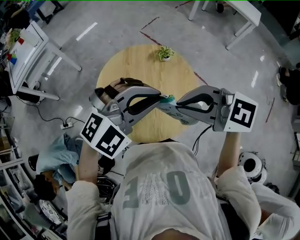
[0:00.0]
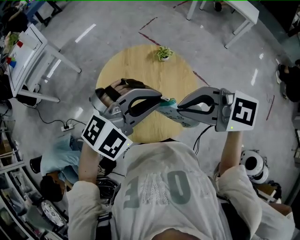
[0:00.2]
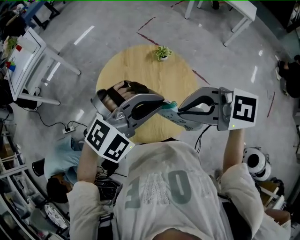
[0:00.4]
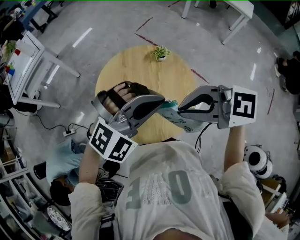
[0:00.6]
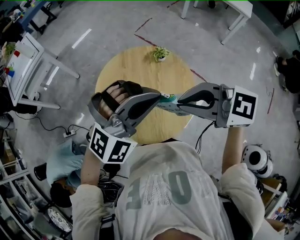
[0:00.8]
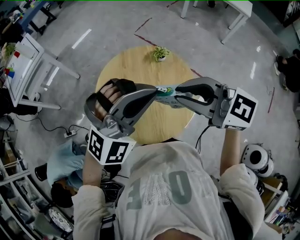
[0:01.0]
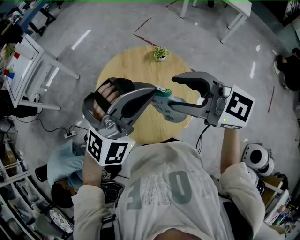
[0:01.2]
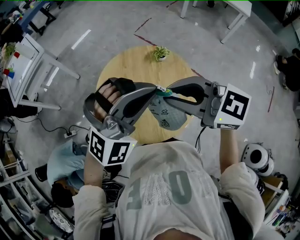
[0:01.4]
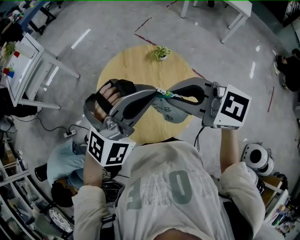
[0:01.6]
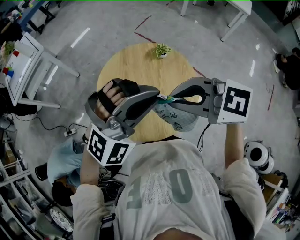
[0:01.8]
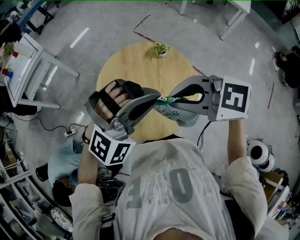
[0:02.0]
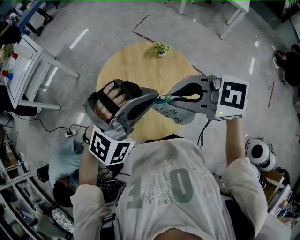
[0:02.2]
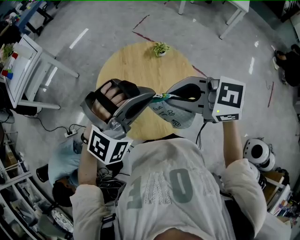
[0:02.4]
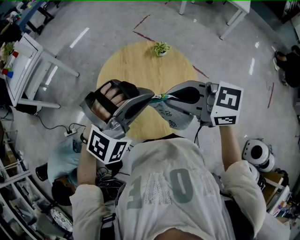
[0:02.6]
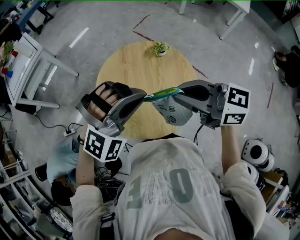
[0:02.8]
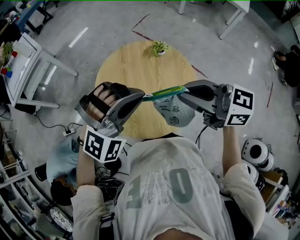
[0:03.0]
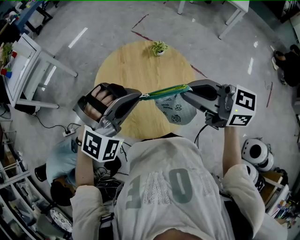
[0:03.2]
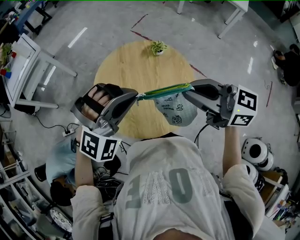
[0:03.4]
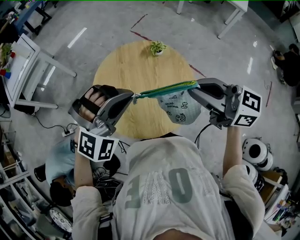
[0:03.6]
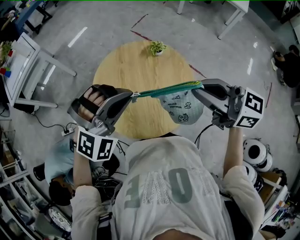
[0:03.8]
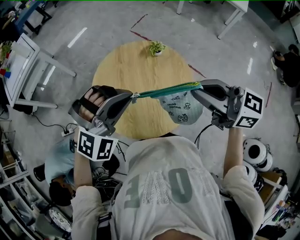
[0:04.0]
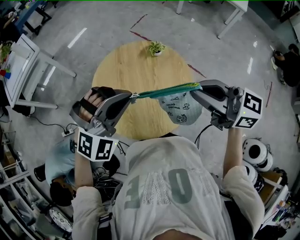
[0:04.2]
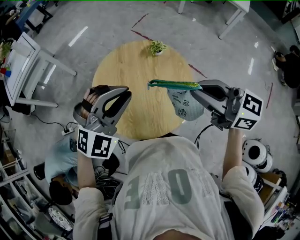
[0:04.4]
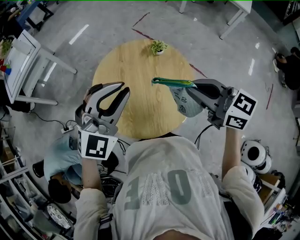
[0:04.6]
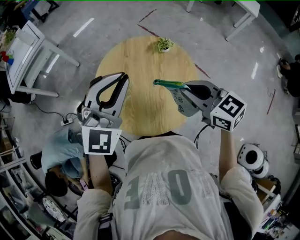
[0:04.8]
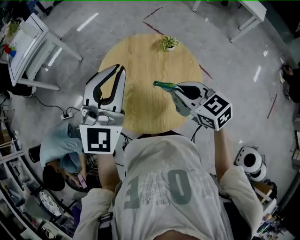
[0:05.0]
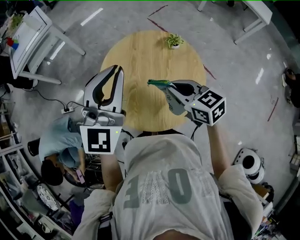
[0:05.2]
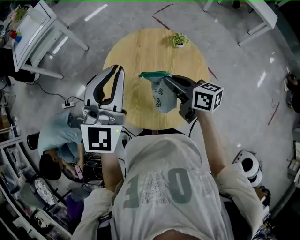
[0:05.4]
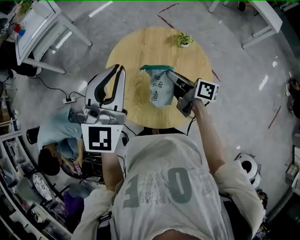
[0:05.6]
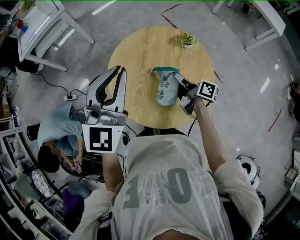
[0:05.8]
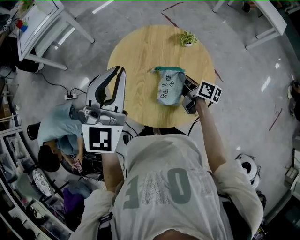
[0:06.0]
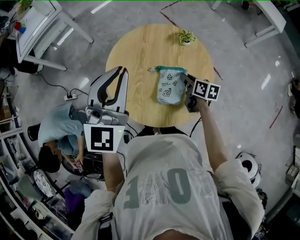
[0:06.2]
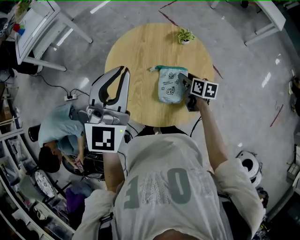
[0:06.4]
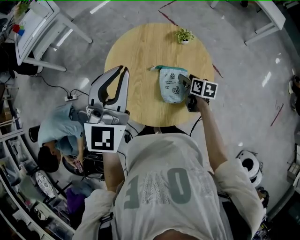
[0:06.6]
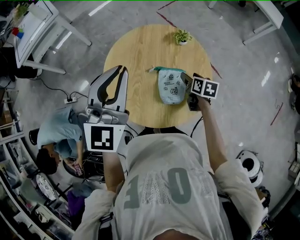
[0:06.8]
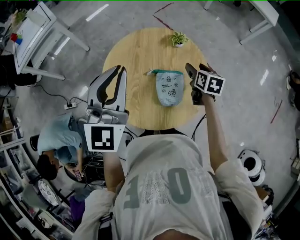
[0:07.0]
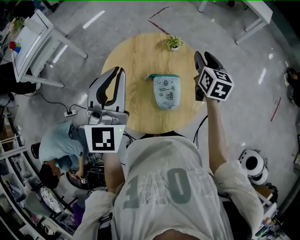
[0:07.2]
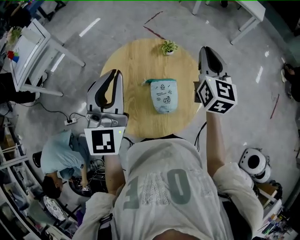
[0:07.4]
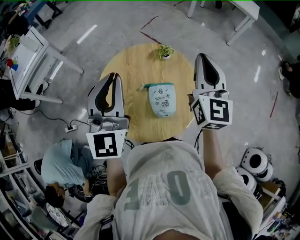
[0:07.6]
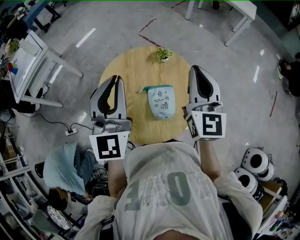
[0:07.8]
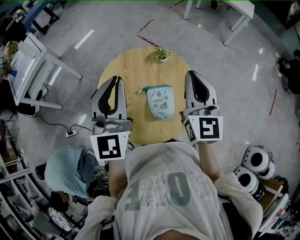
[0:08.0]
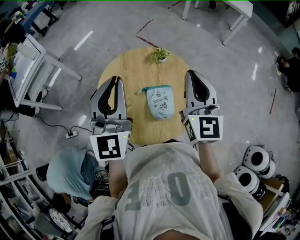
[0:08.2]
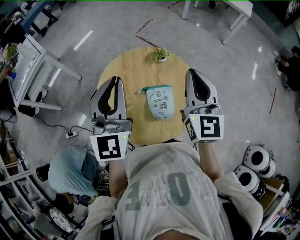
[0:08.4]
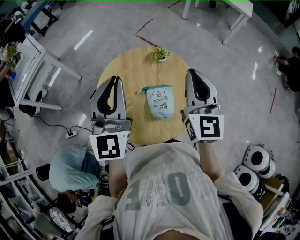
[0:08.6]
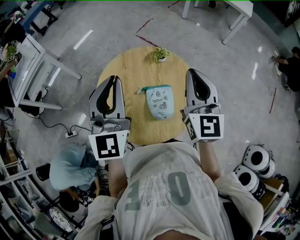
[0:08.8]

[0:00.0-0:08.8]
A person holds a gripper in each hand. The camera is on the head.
0:00.0 to 0:01.4: The right gripper opens and closes again. The left gripper swivels about 20 degrees.
0:01.4 to 0:03.0: The left gripper is displaced downward by roughly 5 cm.
0:03.0 to 0:04.4: The right gripper goes approximately 5 cm to the right; the left gripper swivels approximately 20 degrees.
0:04.4 to 0:05.8: The left gripper travels to the left by approximately 10 cm, and swivels some 60 degrees; the right gripper heads downward and forward, covering approximately 30 cm, and twists roughly 60 degrees clockwise, seen from behind.
0:05.8 to 0:07.4: The right gripper moves upward, some 25 cm, turns by some 80 degrees, and opens, then closes once more. The left gripper moves some 5 cm.
0:07.4 to 0:08.8: The right gripper goes approximately 10 cm backward.

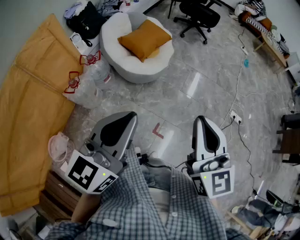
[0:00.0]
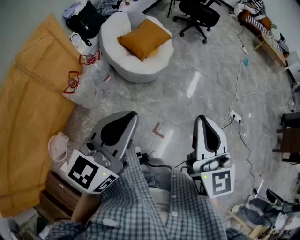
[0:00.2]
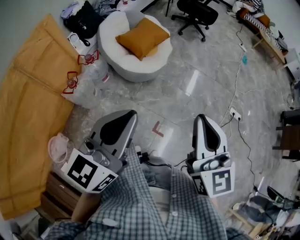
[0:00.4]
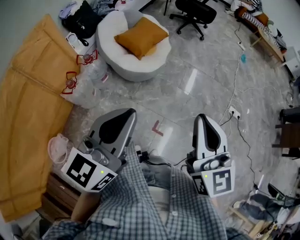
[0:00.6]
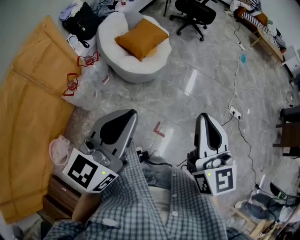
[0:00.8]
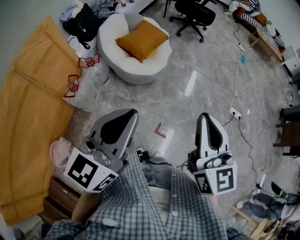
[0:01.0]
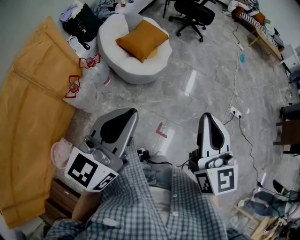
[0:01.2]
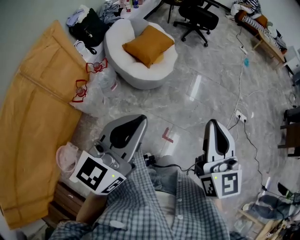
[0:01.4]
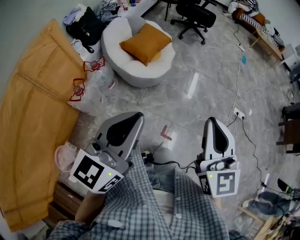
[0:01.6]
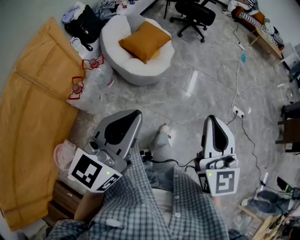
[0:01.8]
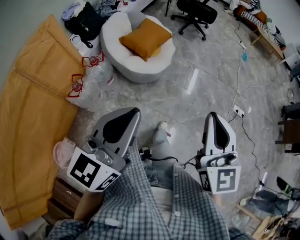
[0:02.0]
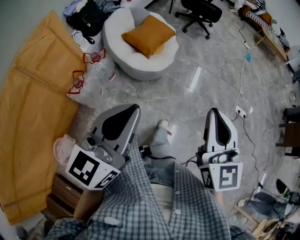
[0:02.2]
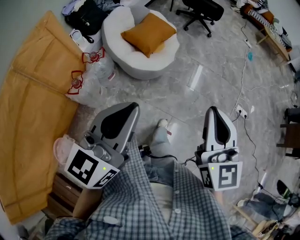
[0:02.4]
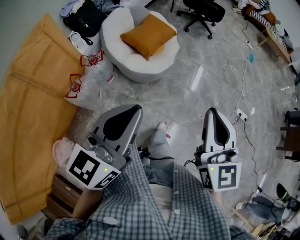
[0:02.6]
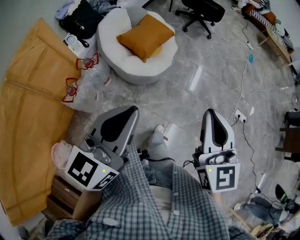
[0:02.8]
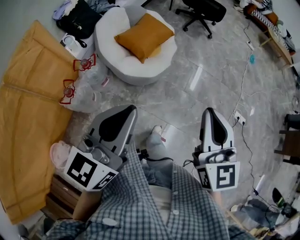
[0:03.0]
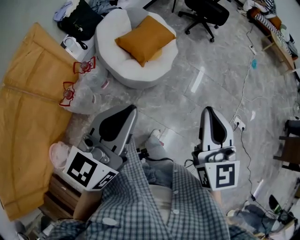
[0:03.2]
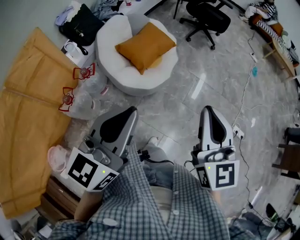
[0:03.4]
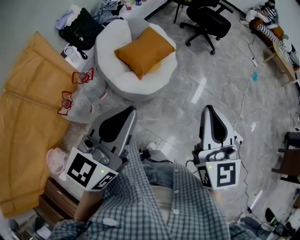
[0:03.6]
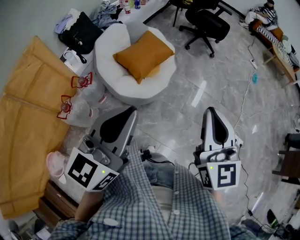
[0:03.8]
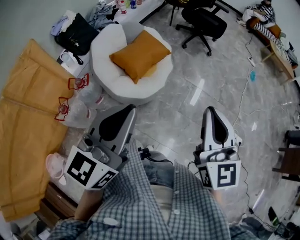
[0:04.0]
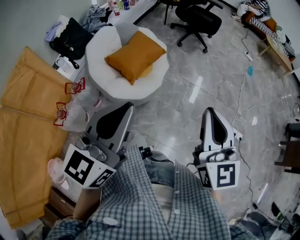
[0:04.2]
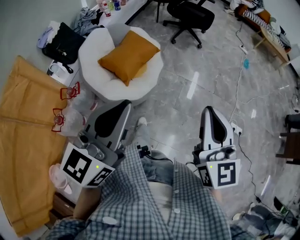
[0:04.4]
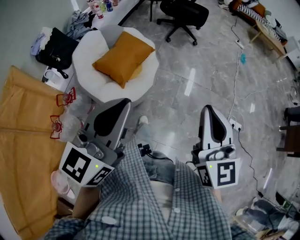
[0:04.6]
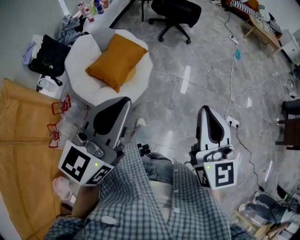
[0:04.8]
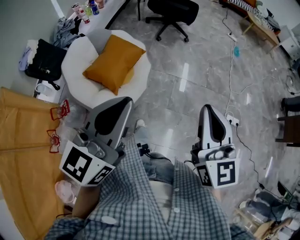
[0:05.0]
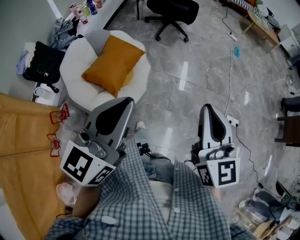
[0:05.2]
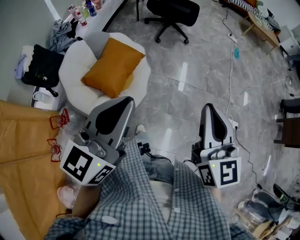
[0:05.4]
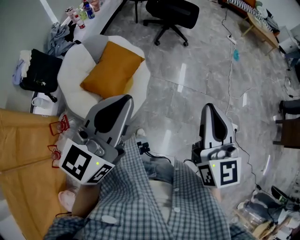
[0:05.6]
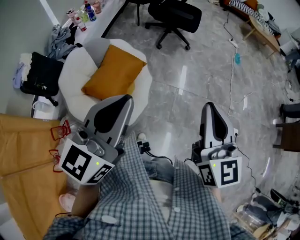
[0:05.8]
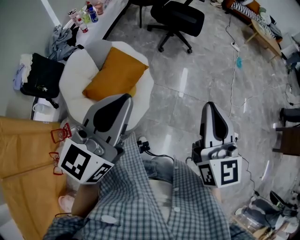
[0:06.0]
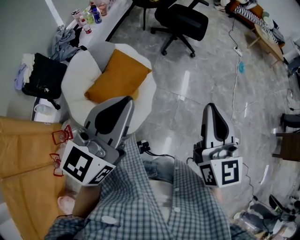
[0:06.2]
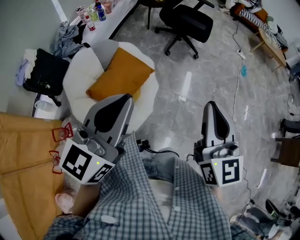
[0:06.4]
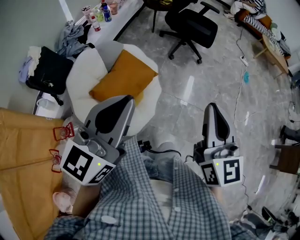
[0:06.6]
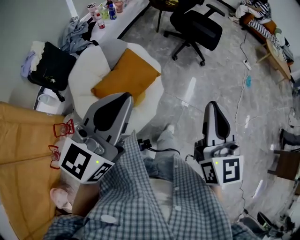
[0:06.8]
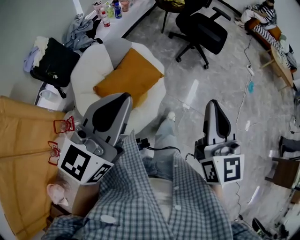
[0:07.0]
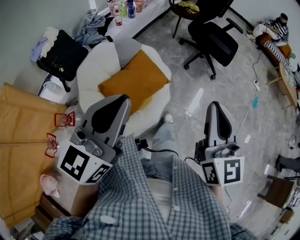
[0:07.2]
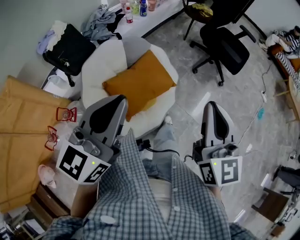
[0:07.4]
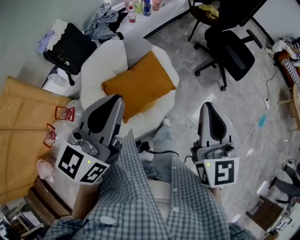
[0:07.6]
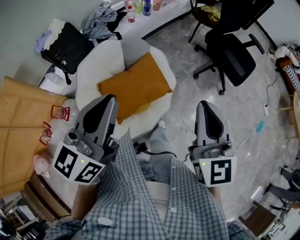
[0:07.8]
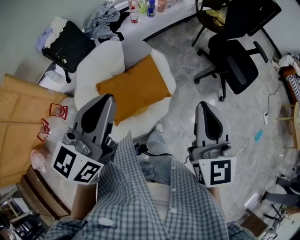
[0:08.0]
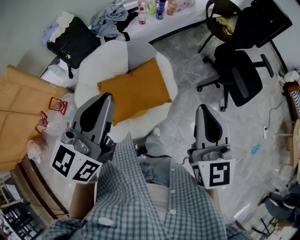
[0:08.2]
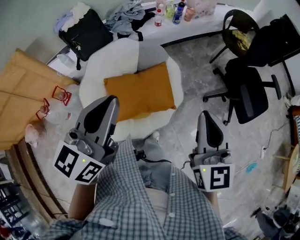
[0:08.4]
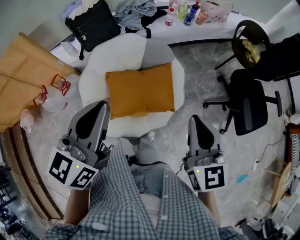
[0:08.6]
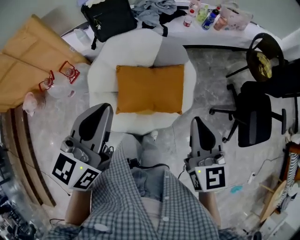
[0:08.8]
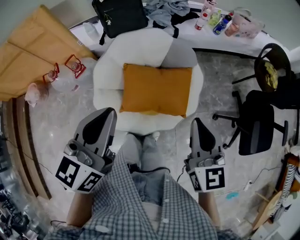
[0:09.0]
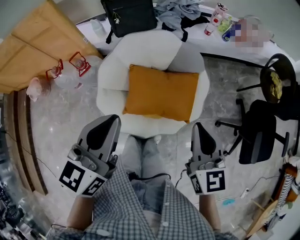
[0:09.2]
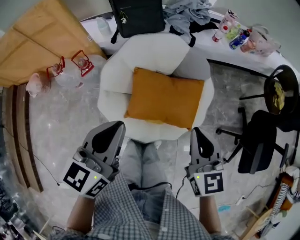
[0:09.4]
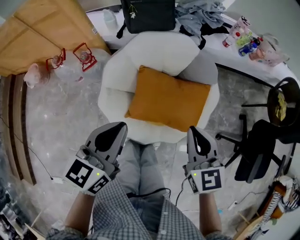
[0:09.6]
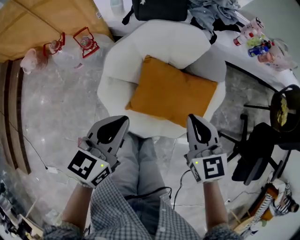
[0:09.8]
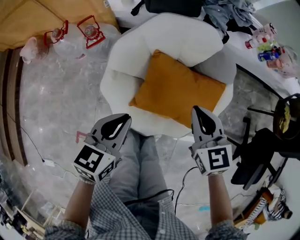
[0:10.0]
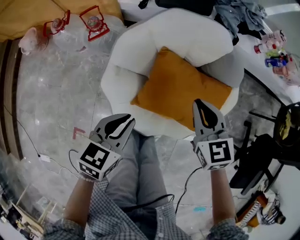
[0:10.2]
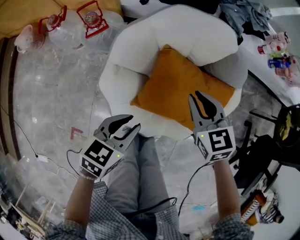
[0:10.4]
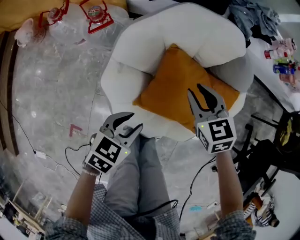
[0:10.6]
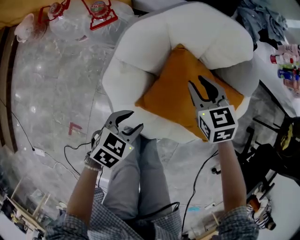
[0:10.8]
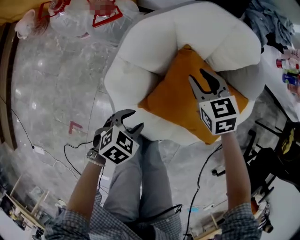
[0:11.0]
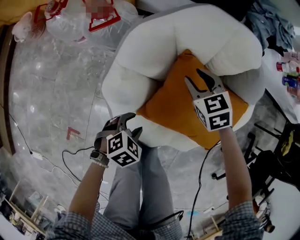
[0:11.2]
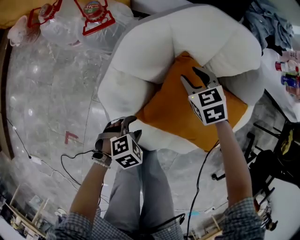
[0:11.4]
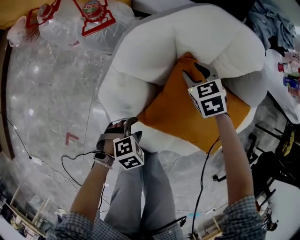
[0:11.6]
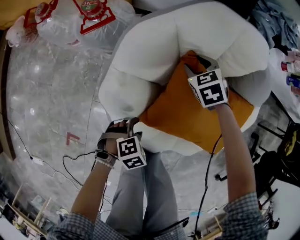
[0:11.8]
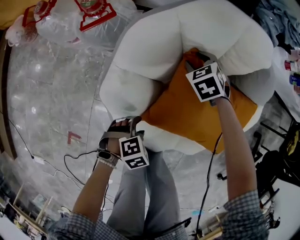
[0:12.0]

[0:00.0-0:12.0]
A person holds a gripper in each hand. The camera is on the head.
0:00.0 to 0:01.6: The left gripper shifts roughly 5 cm to the left.
0:01.6 to 0:03.0: Both grippers move forward, roughly 15 cm.
0:03.0 to 0:04.4: Both grippers move forward and to the right, about 15 cm.
0:04.4 to 0:06.0: Both grippers travel together forward, some 25 cm.
0:06.0 to 0:07.6: The left gripper shifts by roughly 15 cm, and turns by some 30 degrees; the right gripper moves some 25 cm, and changes its angle by roughly 30 degrees.
0:07.6 to 0:09.0: The right gripper moves some 20 cm, and swivels about 40 degrees. The left gripper goes about 5 cm downward, and turns by about 40 degrees.
0:09.0 to 0:10.4: The left gripper shifts about 35 cm downward, turns by approximately 30 degrees, and opens up, while the right gripper heads downward, to the left and forward, covering approximately 40 cm, and swivels some 40 degrees.
0:10.4 to 0:12.0: Both grippers travel together downward, some 25 cm. The left gripper angles its fingers downward, by roughly 30 degrees, and opens its fingers. Meanwhile the right gripper swivels approximately 30 degrees, and opens up.

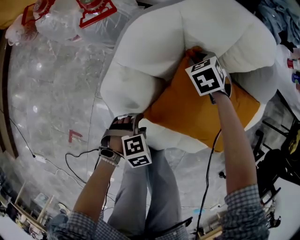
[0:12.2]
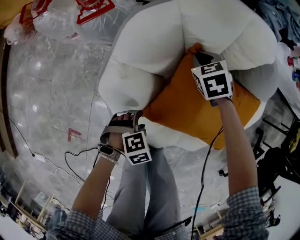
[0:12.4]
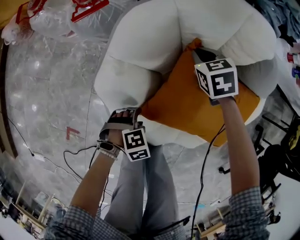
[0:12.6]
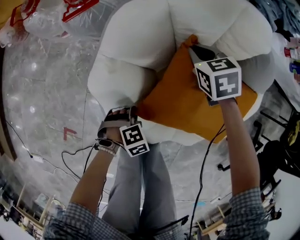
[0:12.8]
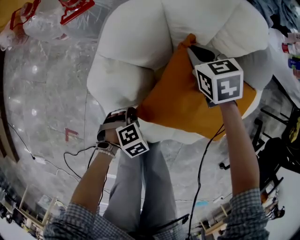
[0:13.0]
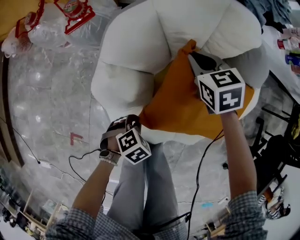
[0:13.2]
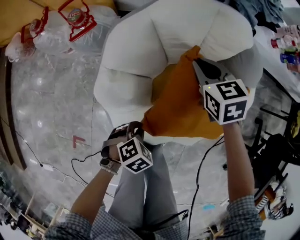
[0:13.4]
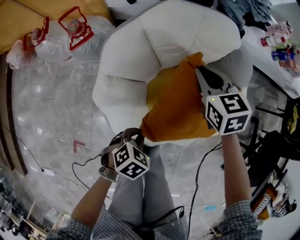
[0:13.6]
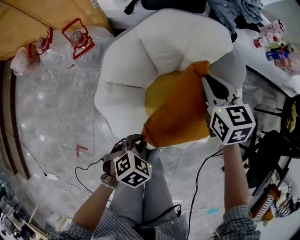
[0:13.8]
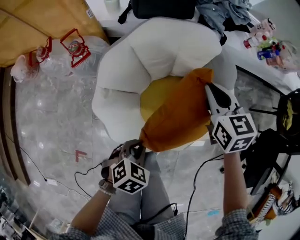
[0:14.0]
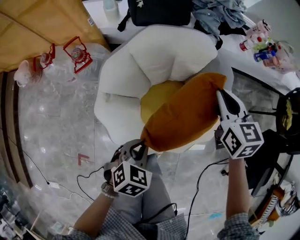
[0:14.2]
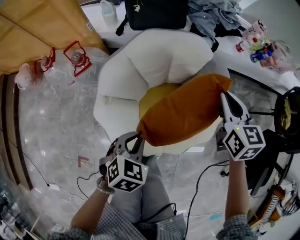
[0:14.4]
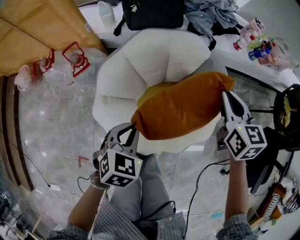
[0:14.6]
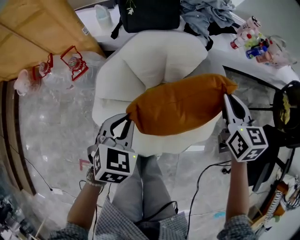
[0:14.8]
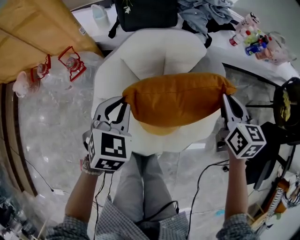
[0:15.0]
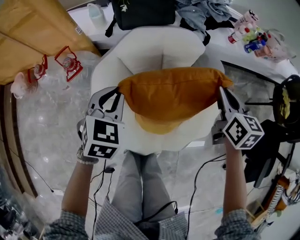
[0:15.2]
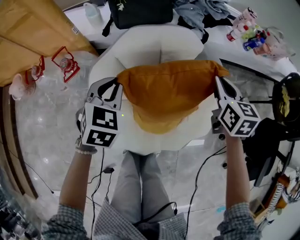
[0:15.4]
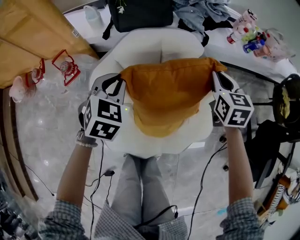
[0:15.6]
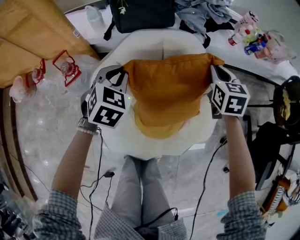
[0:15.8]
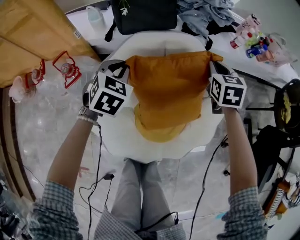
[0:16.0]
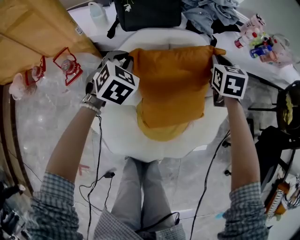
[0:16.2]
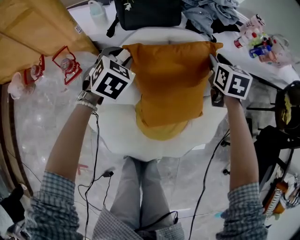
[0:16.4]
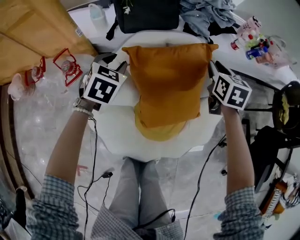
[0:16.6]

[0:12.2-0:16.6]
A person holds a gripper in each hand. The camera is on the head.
0:12.2 to 0:13.6: The left gripper is displaced upward by approximately 10 cm, and closes, while the right gripper travels upward by approximately 20 cm, and turns by roughly 40 degrees.
0:13.6 to 0:15.2: The right gripper heads to the right and upward, covering about 25 cm, and turns by approximately 30 degrees; the left gripper goes approximately 30 cm forward and upward, and turns by roughly 40 degrees.
0:15.2 to 0:16.6: The two grippers go about 15 cm forward and downward. The left gripper opens its fingers.
